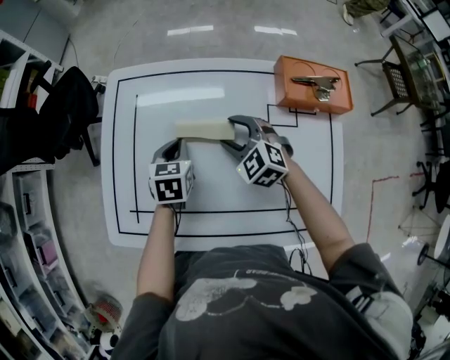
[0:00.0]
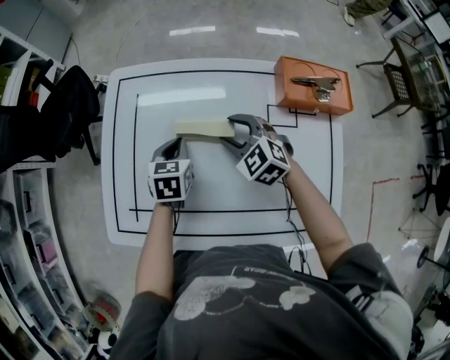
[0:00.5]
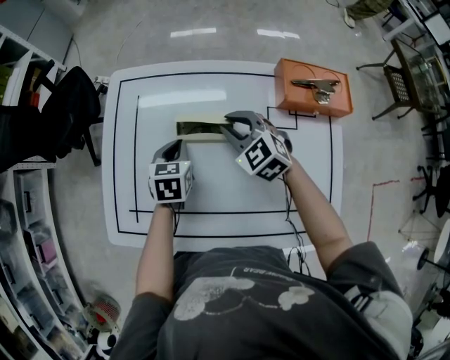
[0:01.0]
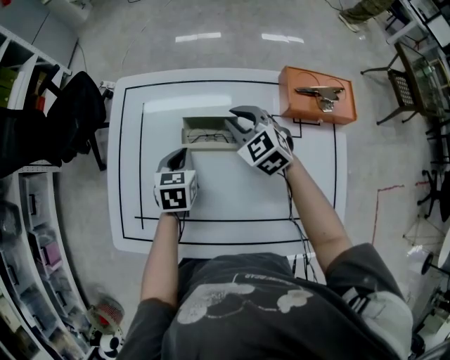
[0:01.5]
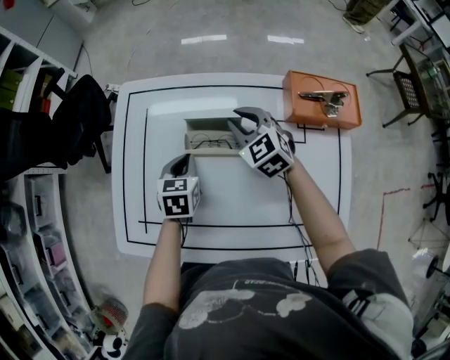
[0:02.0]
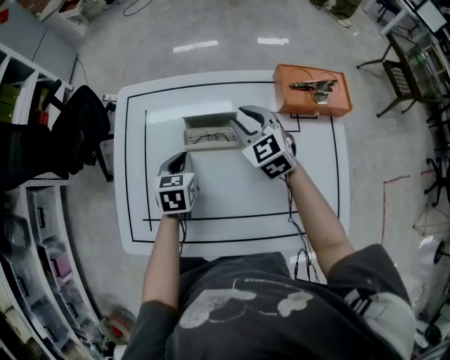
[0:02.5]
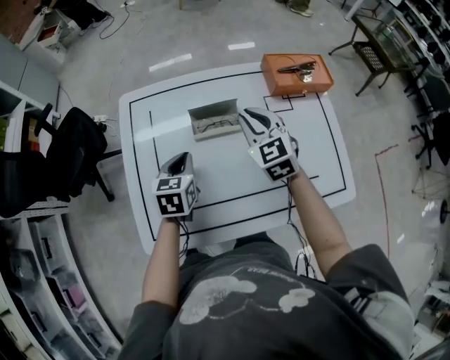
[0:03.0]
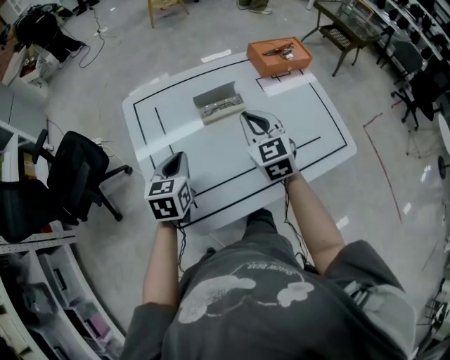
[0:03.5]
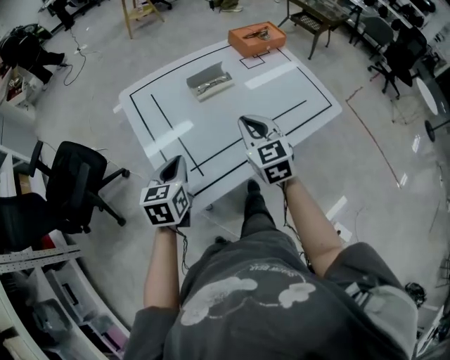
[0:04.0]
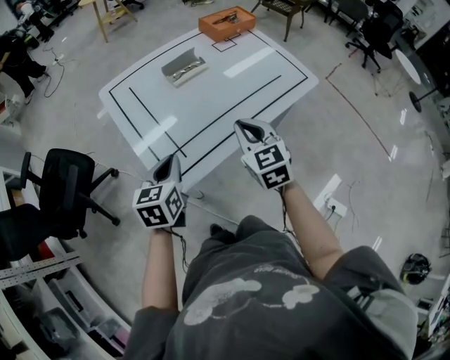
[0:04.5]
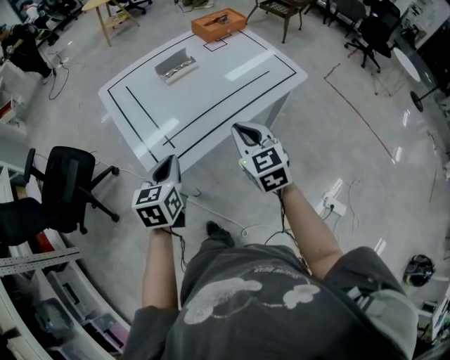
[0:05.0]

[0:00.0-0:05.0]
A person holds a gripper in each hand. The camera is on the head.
0:00.0 to 0:02.5: The right gripper goes approximately 5 cm upward, swivels roughly 20 degrees, and closes up.
0:02.5 to 0:05.0: The left gripper changes place by some 40 cm, and rotates approximately 40 degrees. Meanwhile the right gripper moves roughly 50 cm, turns by approximately 40 degrees, and closes its fingers.

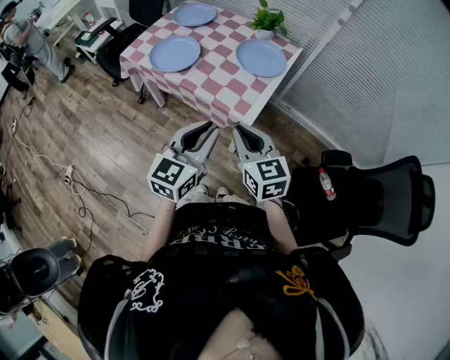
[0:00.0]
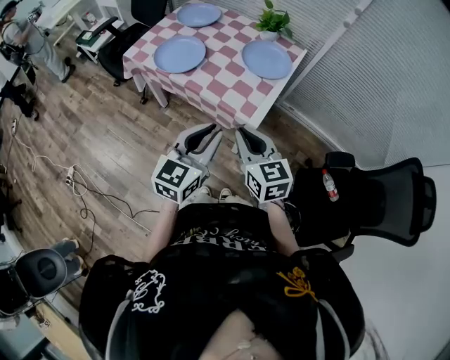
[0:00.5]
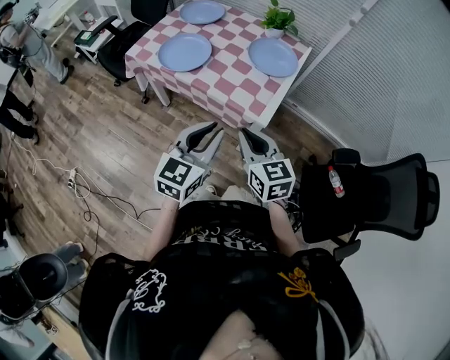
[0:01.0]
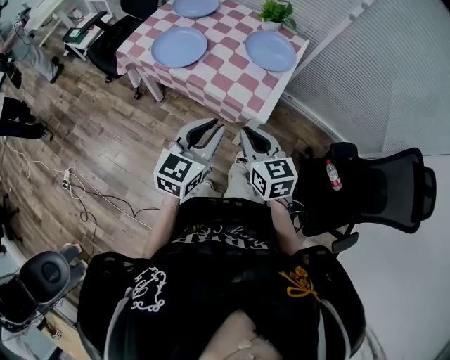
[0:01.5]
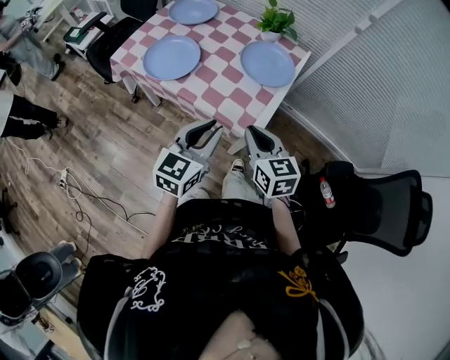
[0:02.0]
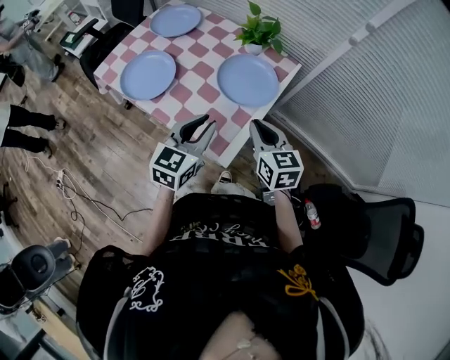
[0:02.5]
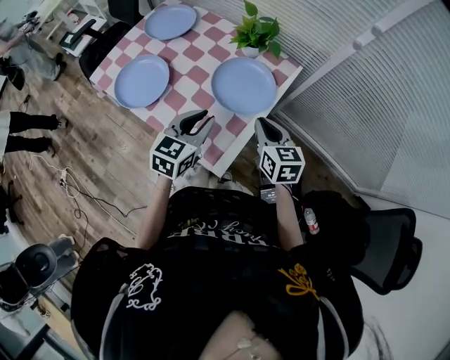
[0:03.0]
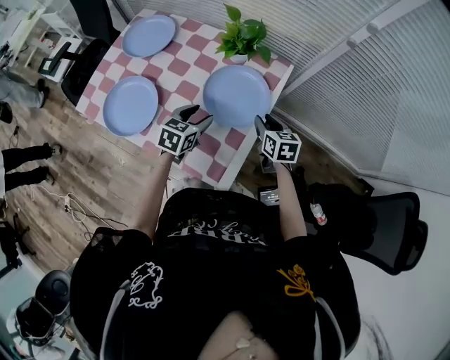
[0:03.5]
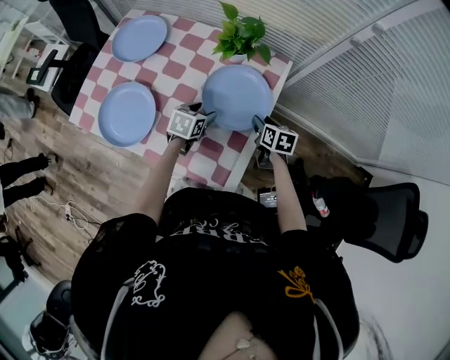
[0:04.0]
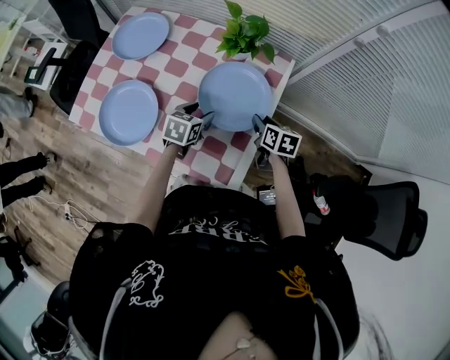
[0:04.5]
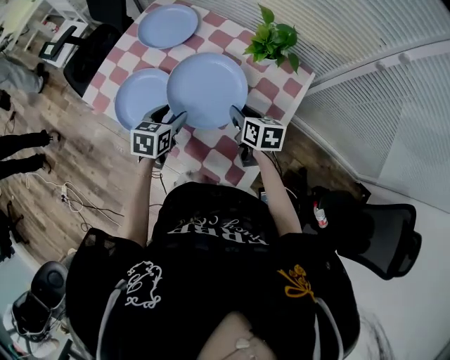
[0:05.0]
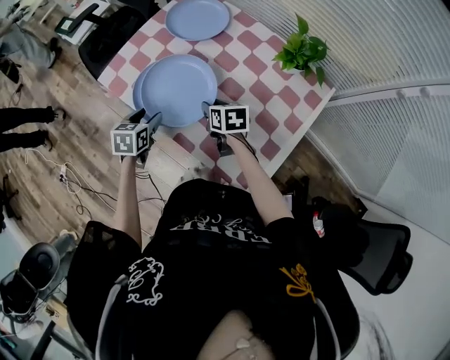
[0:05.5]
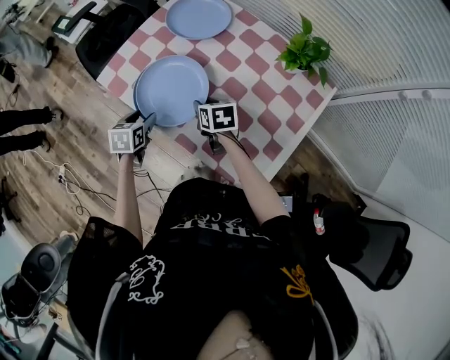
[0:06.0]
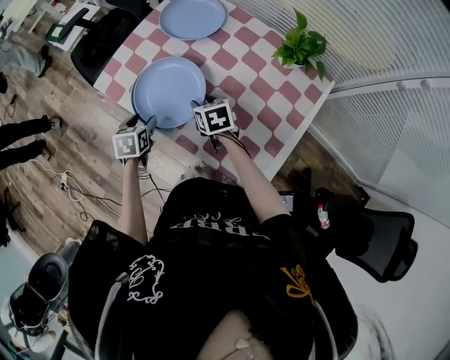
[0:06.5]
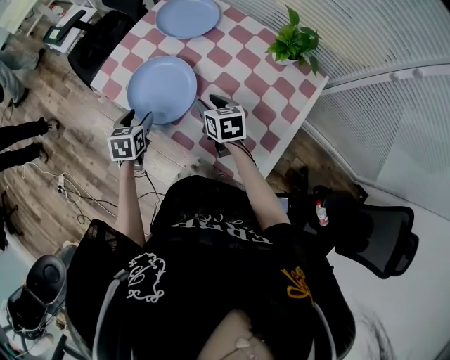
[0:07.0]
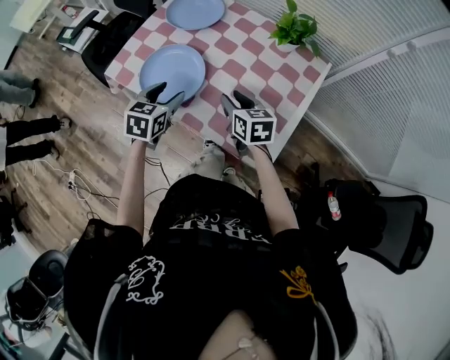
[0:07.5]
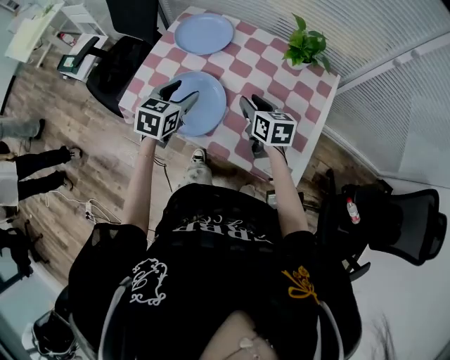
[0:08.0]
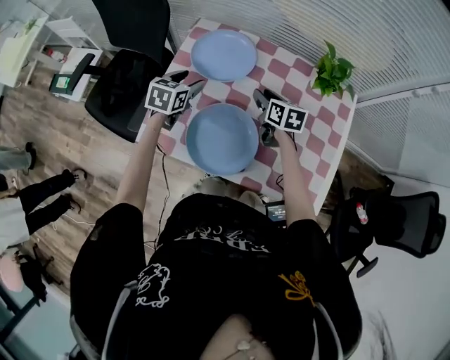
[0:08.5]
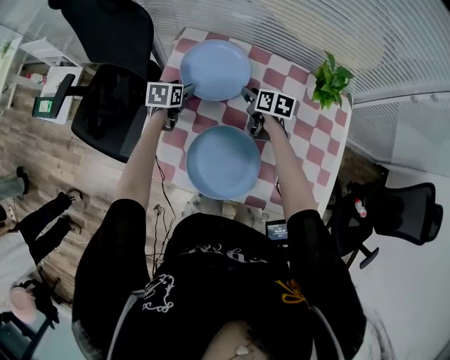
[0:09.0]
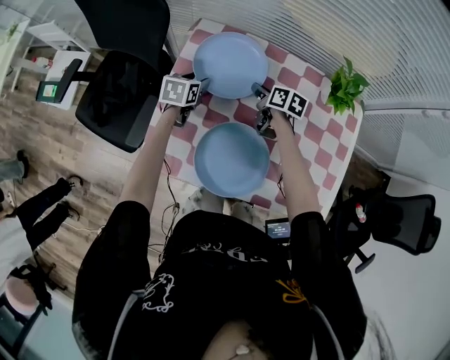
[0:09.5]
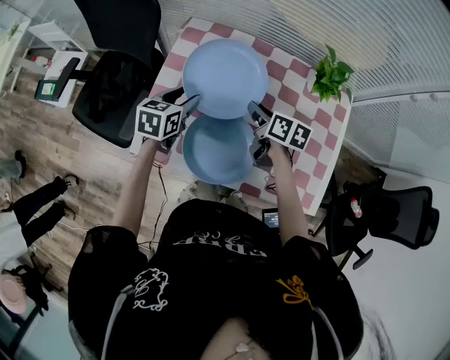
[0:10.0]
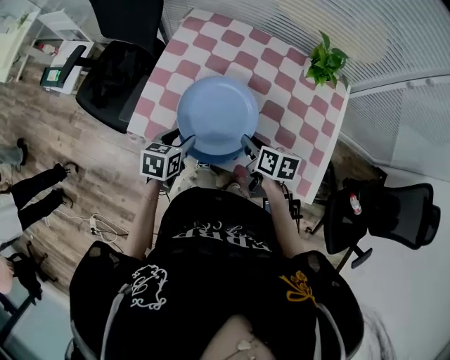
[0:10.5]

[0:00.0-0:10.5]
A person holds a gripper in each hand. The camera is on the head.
0:00.0 to 0:02.0: The left gripper is displaced forward by approximately 10 cm; the right gripper goes some 10 cm forward and downward.
0:02.0 to 0:04.0: The left gripper travels forward and downward by about 40 cm, angles its fingers downward, by approximately 30 degrees, and opens its fingers. Meanwhile the right gripper shifts roughly 40 cm forward, downward and to the right, rotates approximately 40 degrees, and opens its fingers.
0:04.0 to 0:06.5: The right gripper changes place by approximately 40 cm, and swivels about 40 degrees. Meanwhile the left gripper travels upward and back again, about 10 cm each way, and changes its angle by about 40 degrees.
0:06.5 to 0:08.5: The left gripper shifts by some 30 cm, and changes its angle by roughly 40 degrees, while the right gripper shifts by about 15 cm, and swivels roughly 40 degrees.
0:08.5 to 0:10.5: Both grippers travel together backward, roughly 20 cm.

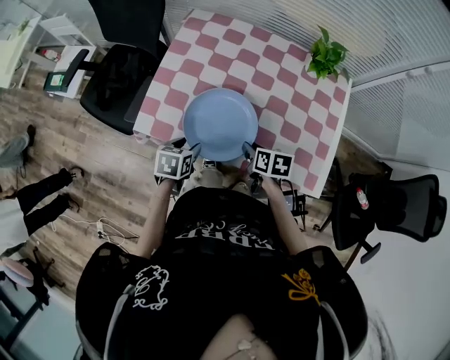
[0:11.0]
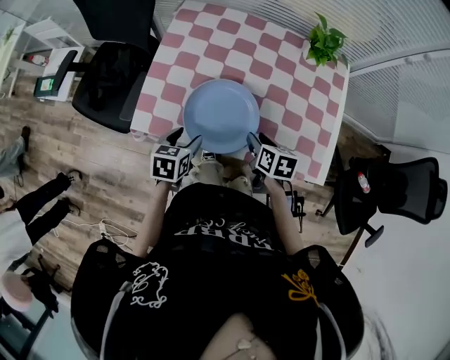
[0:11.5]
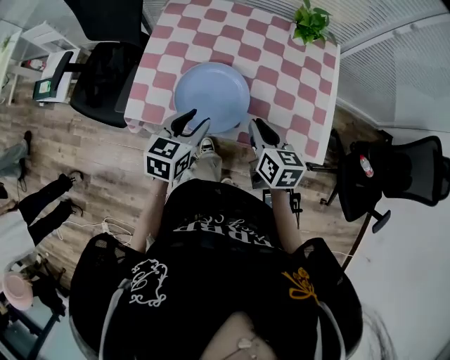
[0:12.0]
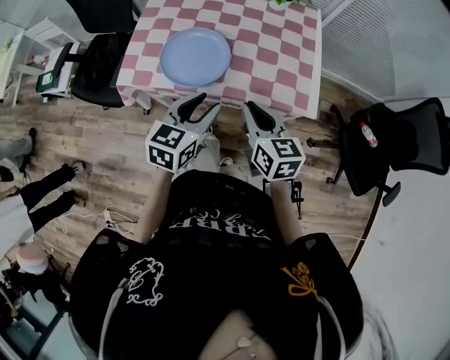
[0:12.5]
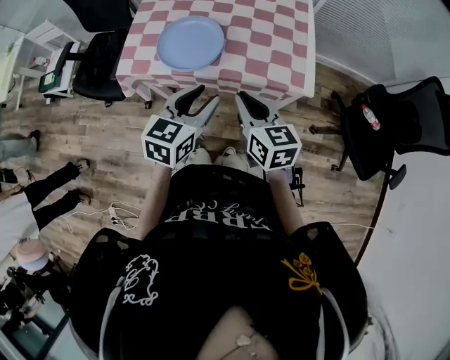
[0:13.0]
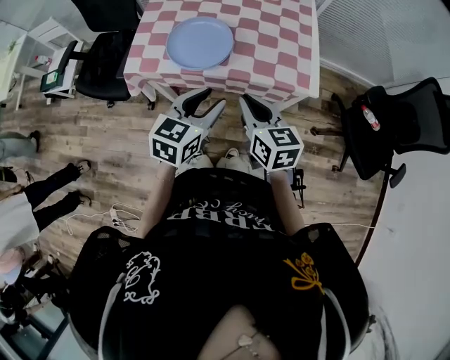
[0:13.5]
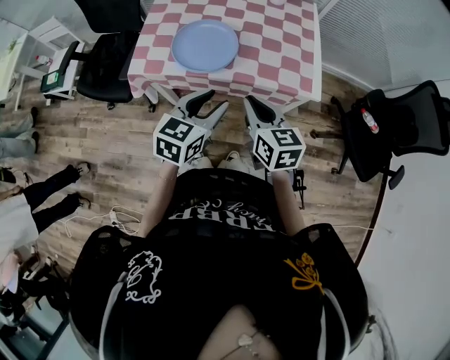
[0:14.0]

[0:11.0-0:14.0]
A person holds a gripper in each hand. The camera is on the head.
0:11.0 to 0:12.5: The right gripper moves backward and upward, about 25 cm, and tilts its fingers about 30 degrees upward. Meanwhile the left gripper is displaced upward, to the right and backward by some 25 cm, and tilts its fingers some 30 degrees upward.
0:12.5 to 0:14.0: The grippers both shift backward by approximately 5 cm.

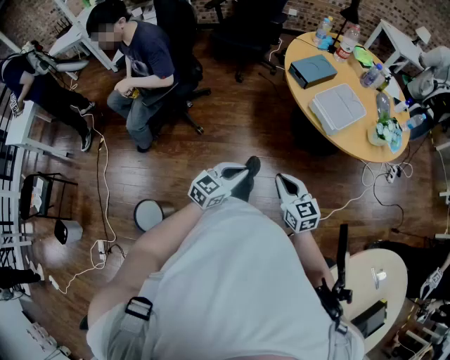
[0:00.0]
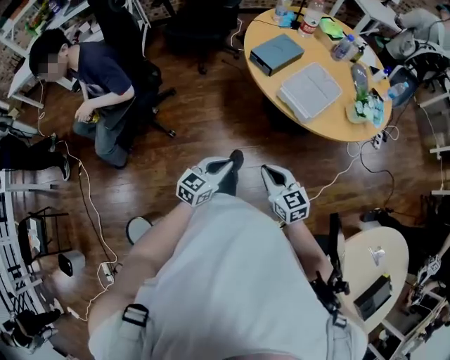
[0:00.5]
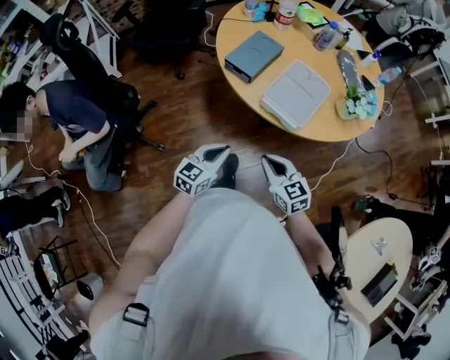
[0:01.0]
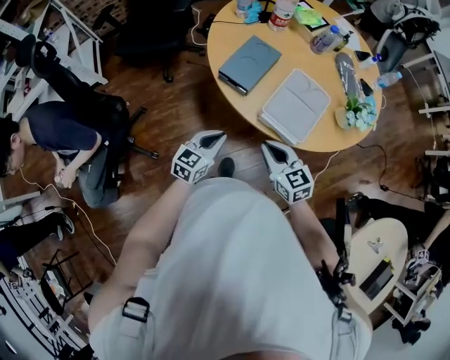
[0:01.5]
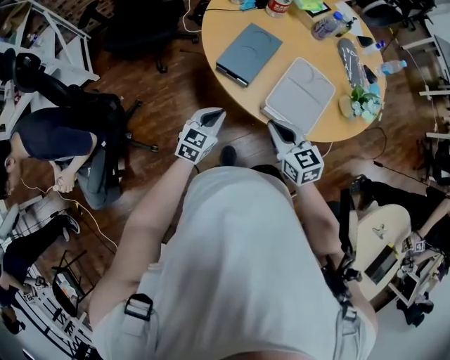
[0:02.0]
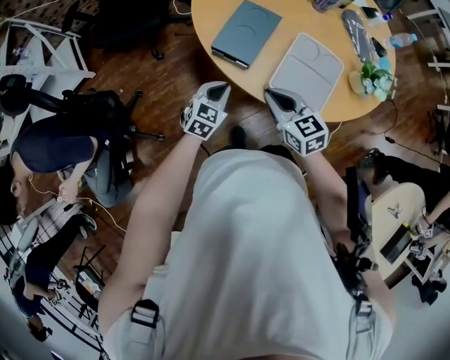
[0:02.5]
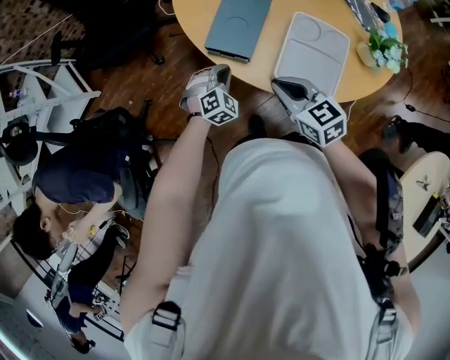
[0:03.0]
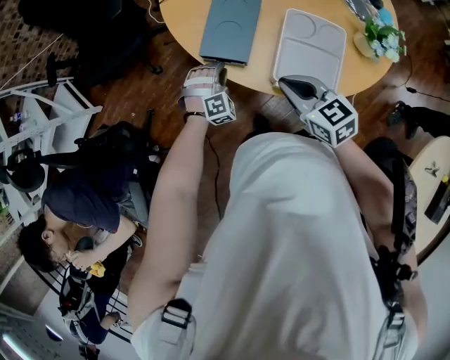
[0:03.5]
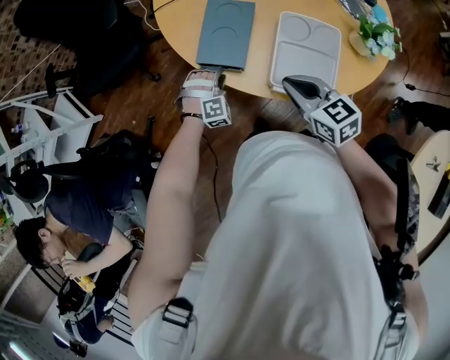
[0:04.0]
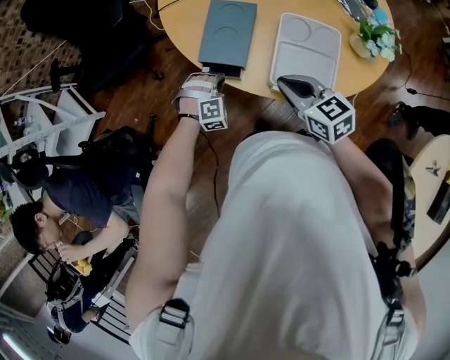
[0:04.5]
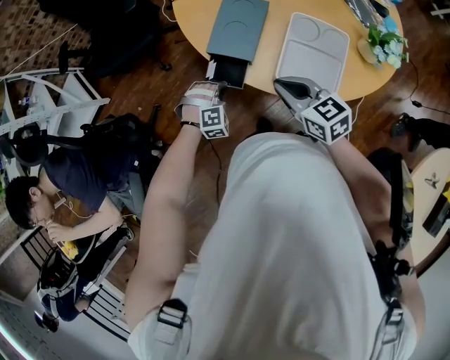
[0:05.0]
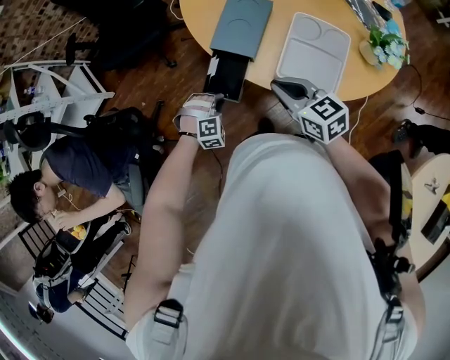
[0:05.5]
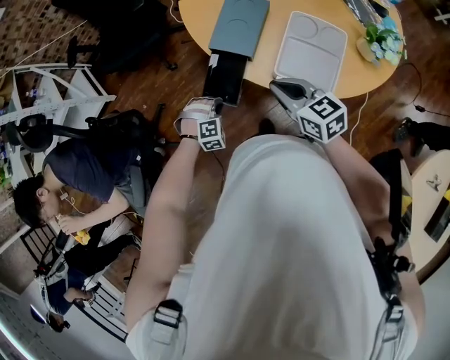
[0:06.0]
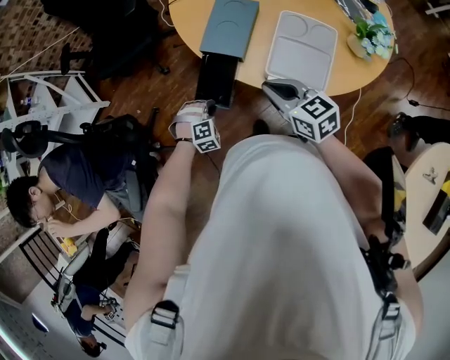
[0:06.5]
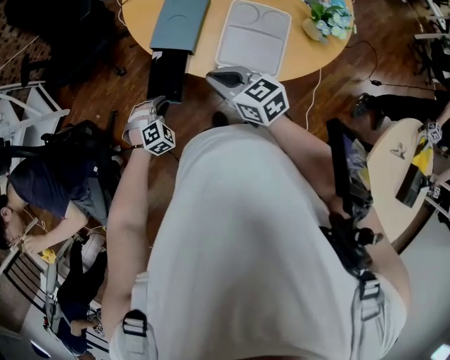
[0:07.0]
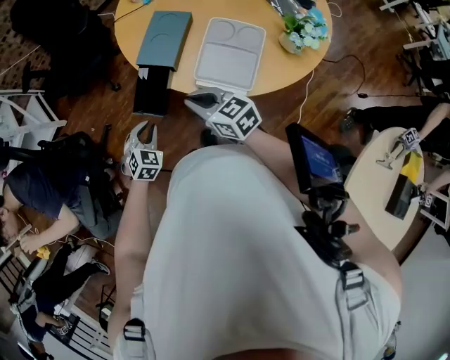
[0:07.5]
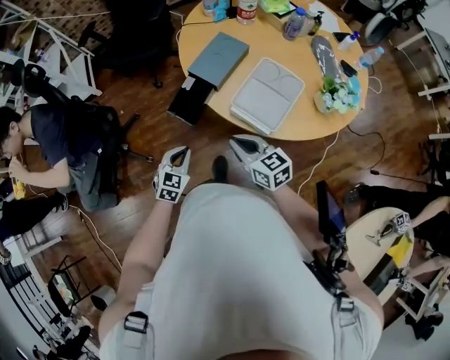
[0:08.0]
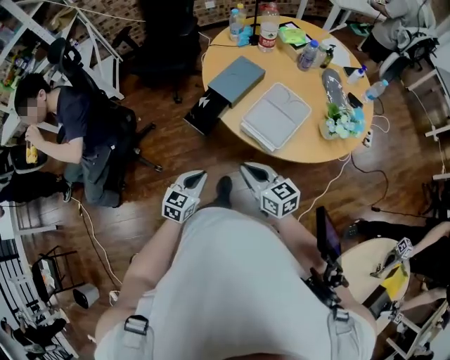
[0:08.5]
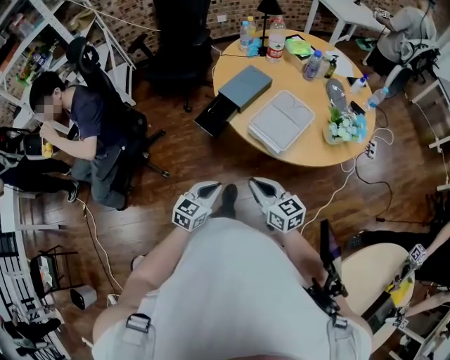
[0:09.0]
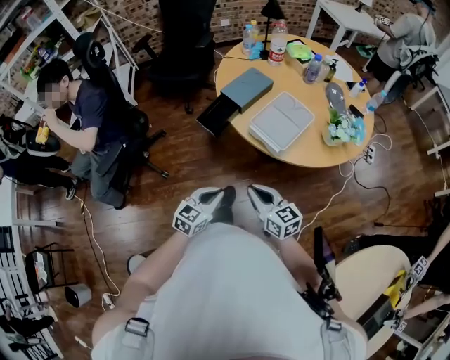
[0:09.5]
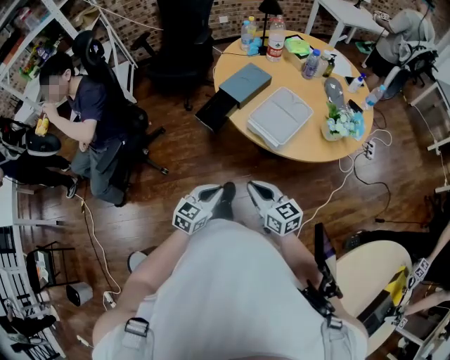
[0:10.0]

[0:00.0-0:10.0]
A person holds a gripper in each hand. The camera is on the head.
0:00.0 to 0:02.0: The two grippers travel together, forward, approximately 40 cm. The right gripper turns by about 20 degrees.
0:02.0 to 0:04.0: The right gripper moves forward, some 5 cm. Meanwhile the left gripper travels forward and downward by about 15 cm, twists about 80 degrees clockwise, seen from behind, and opens its fingers.
0:04.0 to 0:06.0: The left gripper travels backward and to the left by about 15 cm, and closes. The right gripper moves to the left, roughly 5 cm.
0:06.0 to 0:08.0: The right gripper heads backward, covering about 10 cm. The left gripper goes some 20 cm backward and upward, and twists approximately 70 degrees counterclockwise, seen from behind.
0:08.0 to 0:10.0: The left gripper travels backward and to the right by roughly 20 cm, and turns by about 20 degrees. Meanwhile the right gripper heads backward, covering approximately 15 cm.
